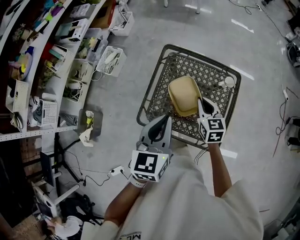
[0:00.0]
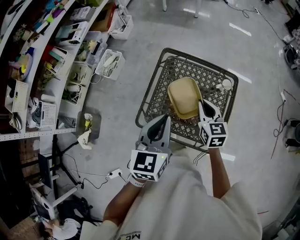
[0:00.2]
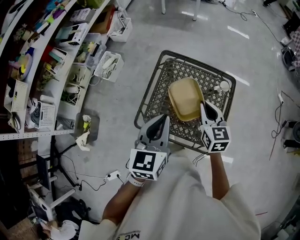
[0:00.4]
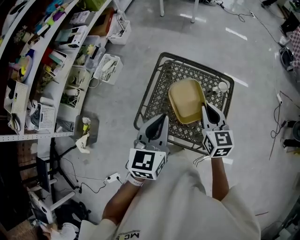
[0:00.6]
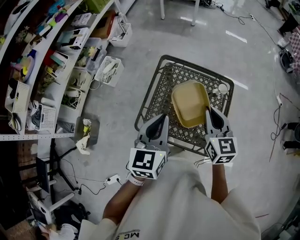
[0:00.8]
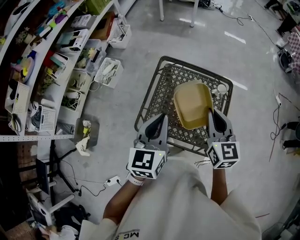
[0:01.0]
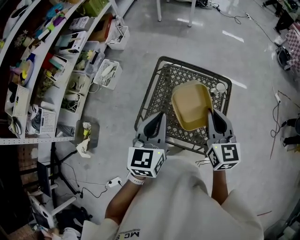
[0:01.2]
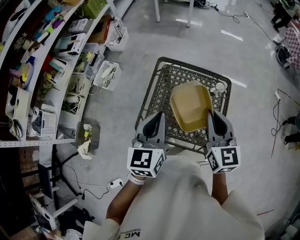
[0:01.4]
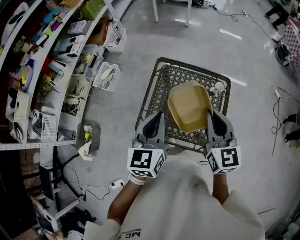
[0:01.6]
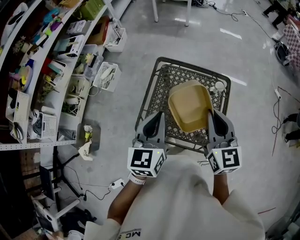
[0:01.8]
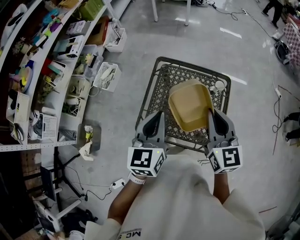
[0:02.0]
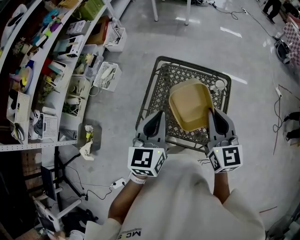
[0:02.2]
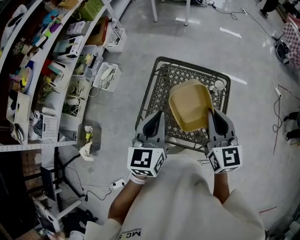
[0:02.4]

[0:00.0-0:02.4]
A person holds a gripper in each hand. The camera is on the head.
0:00.0 to 0:01.2: The right gripper heads upward, covering some 20 cm.
0:01.2 to 0:02.4: The grippers make only small movements.

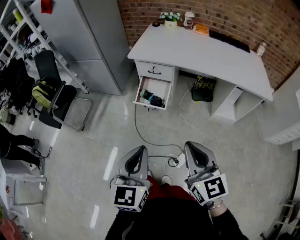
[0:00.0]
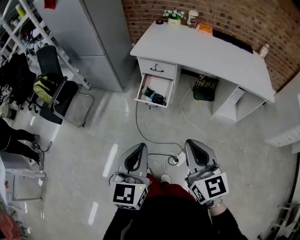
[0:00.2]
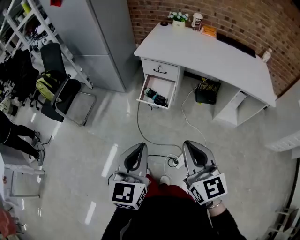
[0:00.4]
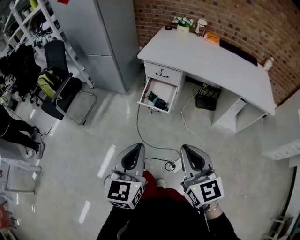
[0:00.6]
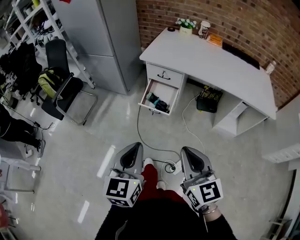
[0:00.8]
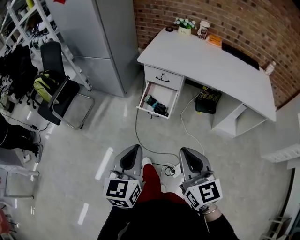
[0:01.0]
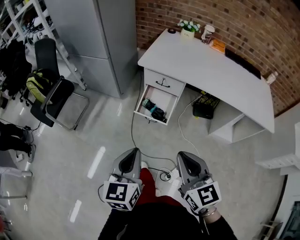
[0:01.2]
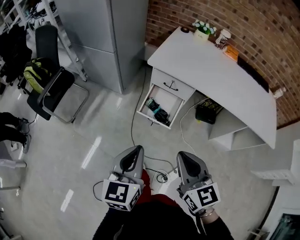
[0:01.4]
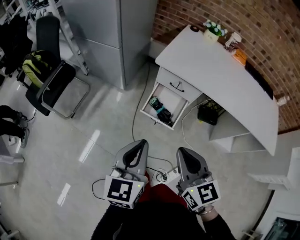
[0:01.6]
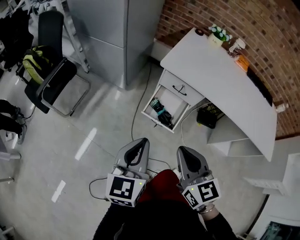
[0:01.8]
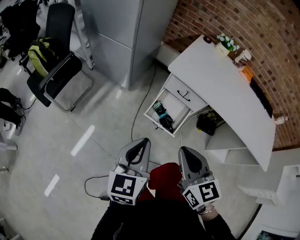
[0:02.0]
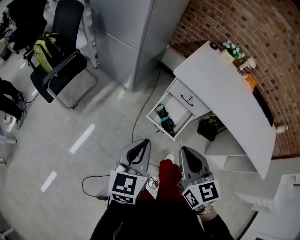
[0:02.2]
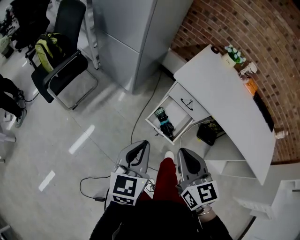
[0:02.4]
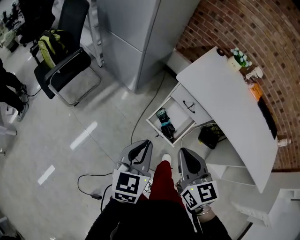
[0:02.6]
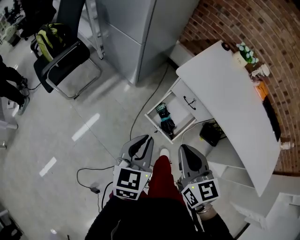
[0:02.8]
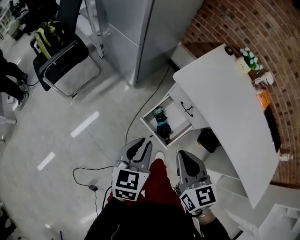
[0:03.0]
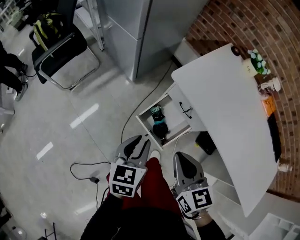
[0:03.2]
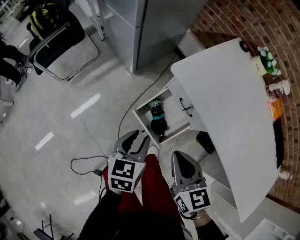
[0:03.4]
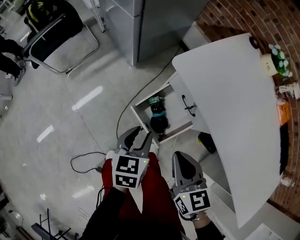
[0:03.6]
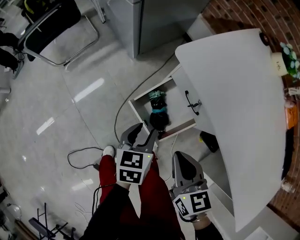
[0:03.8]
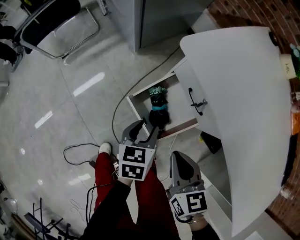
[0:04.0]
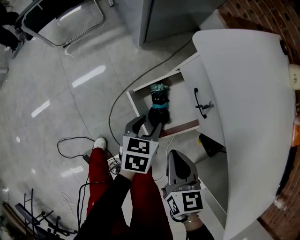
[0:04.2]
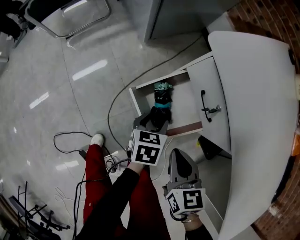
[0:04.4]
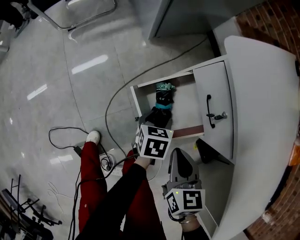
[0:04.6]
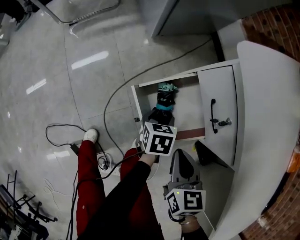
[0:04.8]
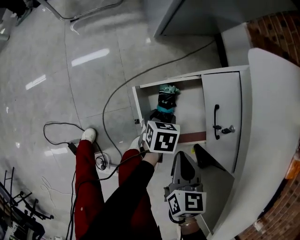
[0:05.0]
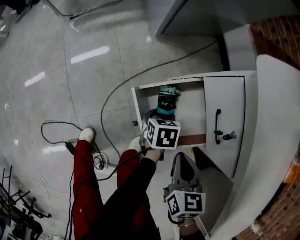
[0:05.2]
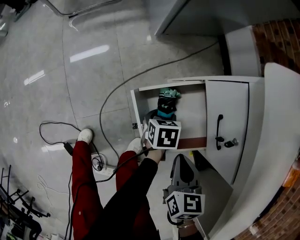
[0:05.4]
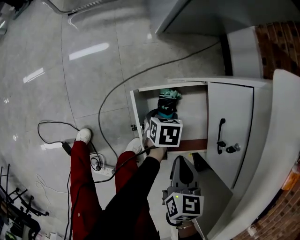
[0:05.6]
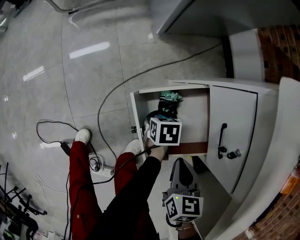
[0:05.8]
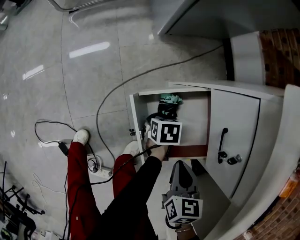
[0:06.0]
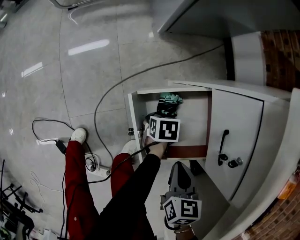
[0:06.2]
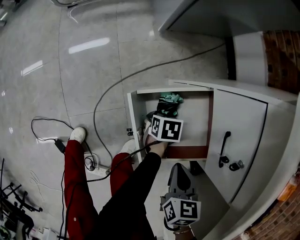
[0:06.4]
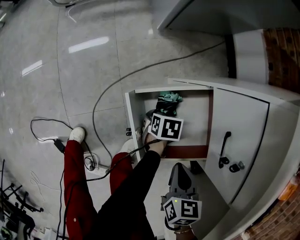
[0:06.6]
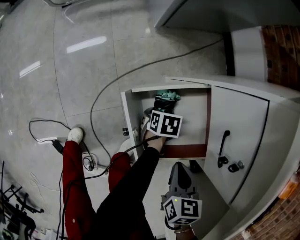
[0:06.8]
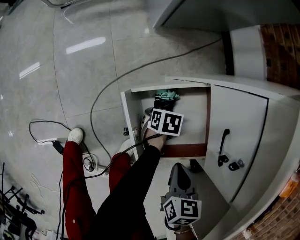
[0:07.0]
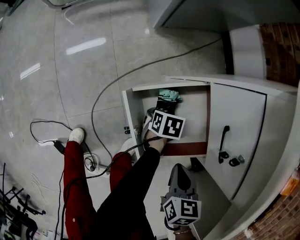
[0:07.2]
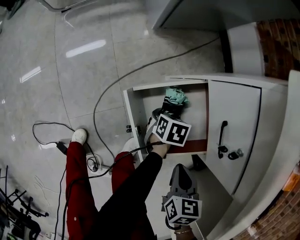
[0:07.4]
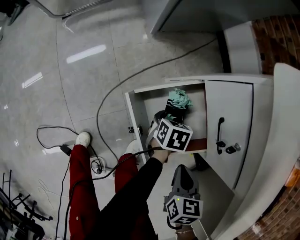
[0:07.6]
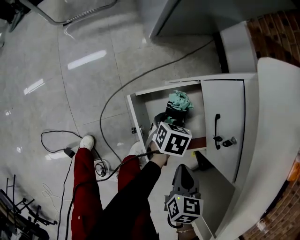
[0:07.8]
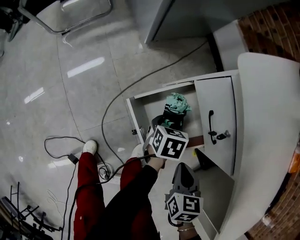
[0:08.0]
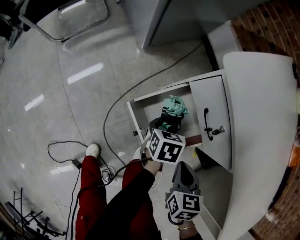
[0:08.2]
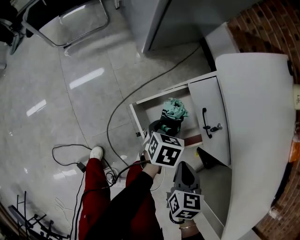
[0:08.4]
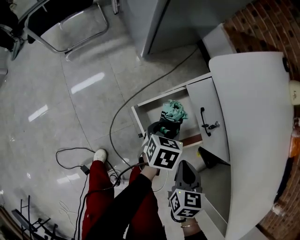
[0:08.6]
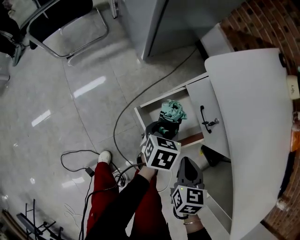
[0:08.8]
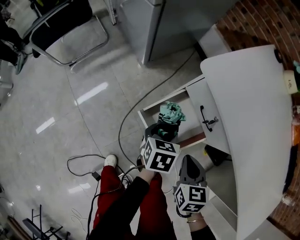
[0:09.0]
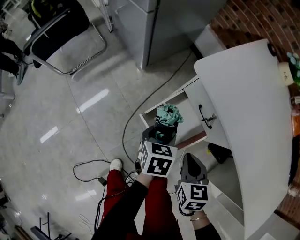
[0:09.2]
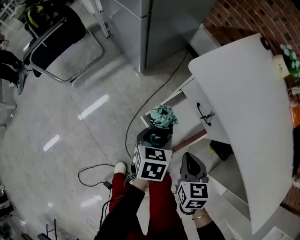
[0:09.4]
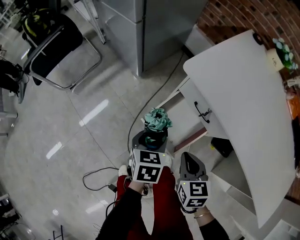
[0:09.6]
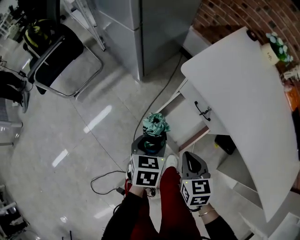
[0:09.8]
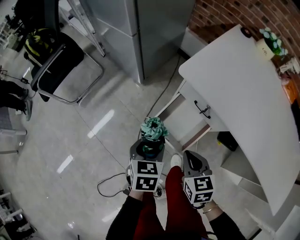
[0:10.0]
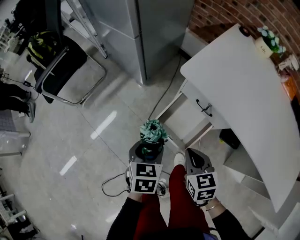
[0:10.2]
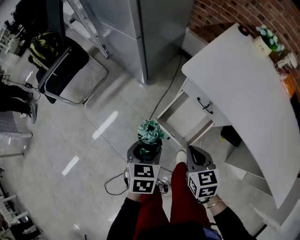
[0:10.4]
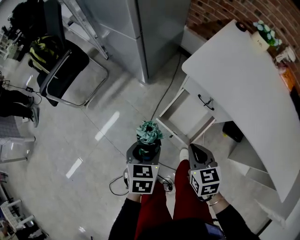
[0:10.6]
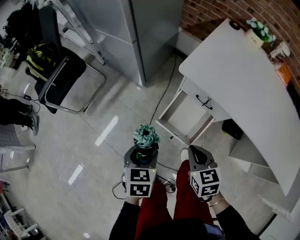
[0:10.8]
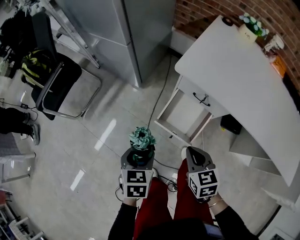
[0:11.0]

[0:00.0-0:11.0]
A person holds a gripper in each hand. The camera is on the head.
0:00.0 to 0:01.6: The two grippers go approximately 25 cm forward and to the left.
0:01.6 to 0:03.2: The two grippers go some 20 cm forward, downward and to the right. The left gripper changes its angle by some 20 degrees. The right gripper turns by about 20 degrees.
0:03.2 to 0:04.8: The two grippers go approximately 30 cm downward. The right gripper swivels approximately 20 degrees. Meanwhile the left gripper swivels about 40 degrees, and opens.
0:04.8 to 0:06.2: The left gripper travels downward by approximately 15 cm, and swivels approximately 20 degrees, while the right gripper goes roughly 10 cm downward.
0:06.2 to 0:07.8: The left gripper moves upward, roughly 10 cm, and rotates some 20 degrees.
0:07.8 to 0:09.4: The right gripper heads upward and to the left, covering approximately 15 cm, while the left gripper travels upward and to the left by some 25 cm, and rotates approximately 20 degrees.
0:09.4 to 0:11.0: The right gripper travels to the left and upward by some 10 cm, while the left gripper moves to the left, upward and backward, about 20 cm.

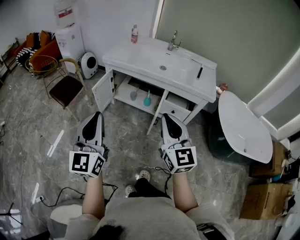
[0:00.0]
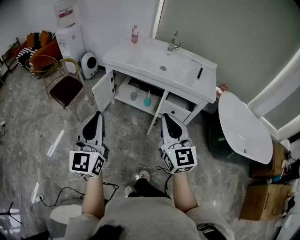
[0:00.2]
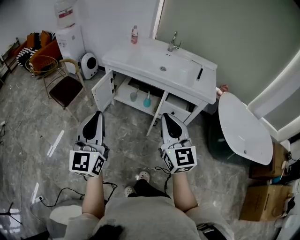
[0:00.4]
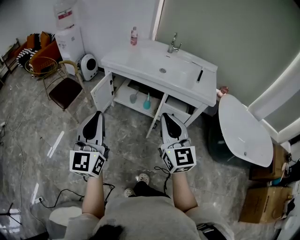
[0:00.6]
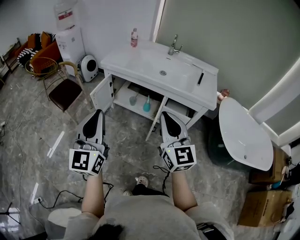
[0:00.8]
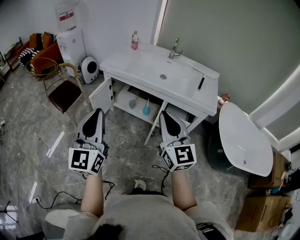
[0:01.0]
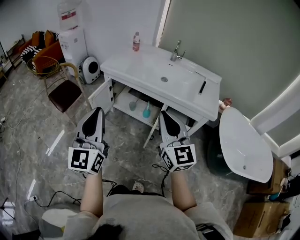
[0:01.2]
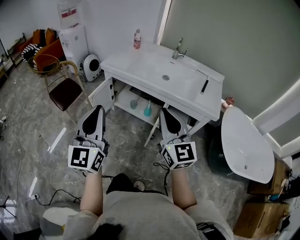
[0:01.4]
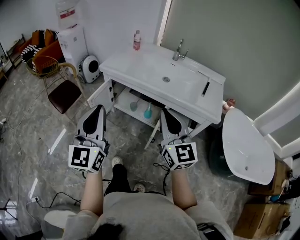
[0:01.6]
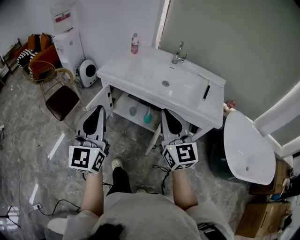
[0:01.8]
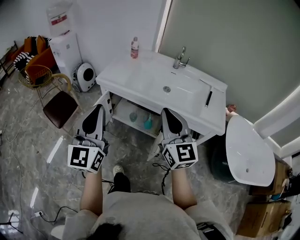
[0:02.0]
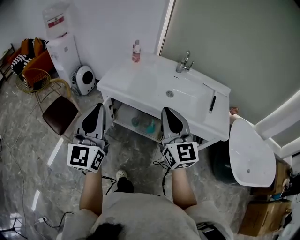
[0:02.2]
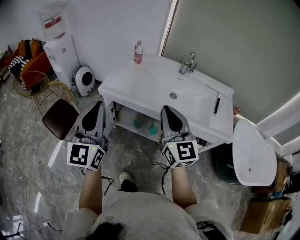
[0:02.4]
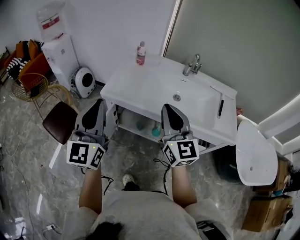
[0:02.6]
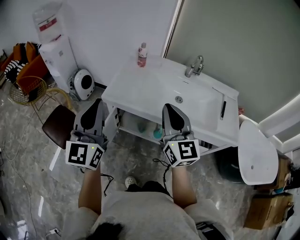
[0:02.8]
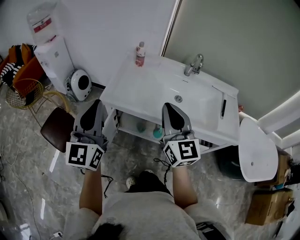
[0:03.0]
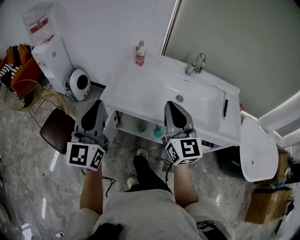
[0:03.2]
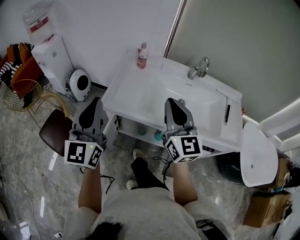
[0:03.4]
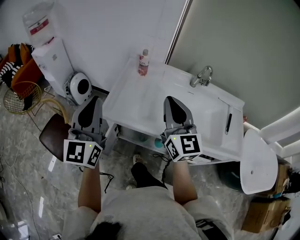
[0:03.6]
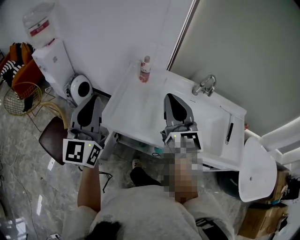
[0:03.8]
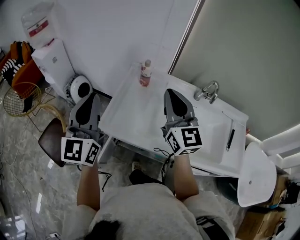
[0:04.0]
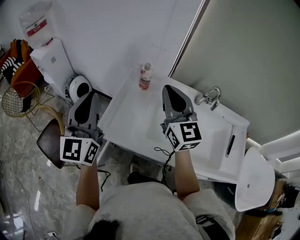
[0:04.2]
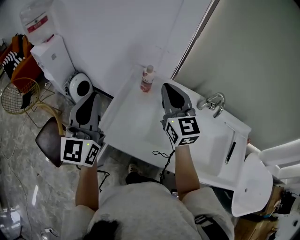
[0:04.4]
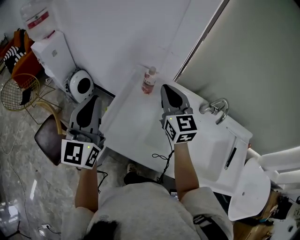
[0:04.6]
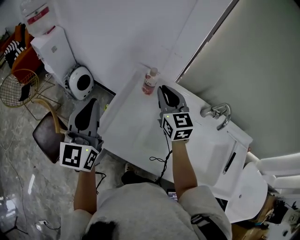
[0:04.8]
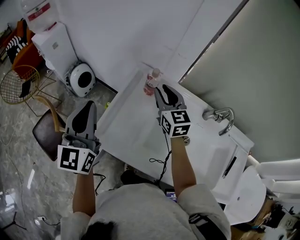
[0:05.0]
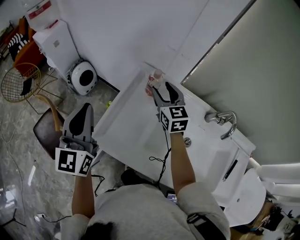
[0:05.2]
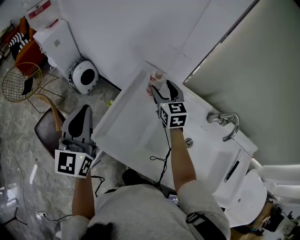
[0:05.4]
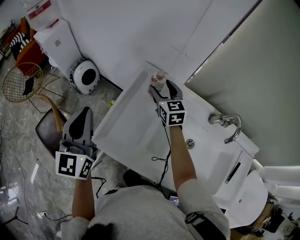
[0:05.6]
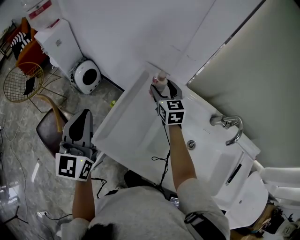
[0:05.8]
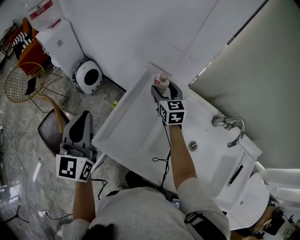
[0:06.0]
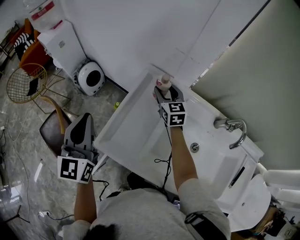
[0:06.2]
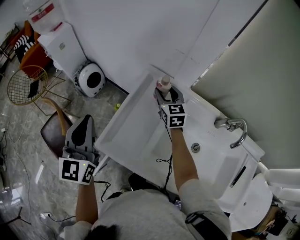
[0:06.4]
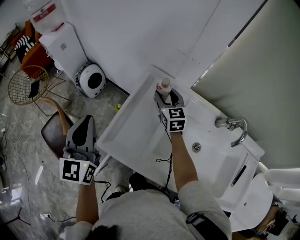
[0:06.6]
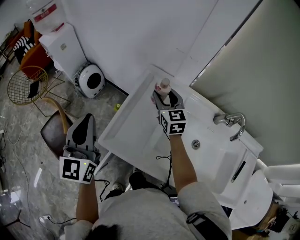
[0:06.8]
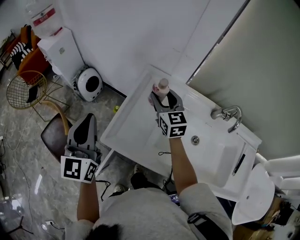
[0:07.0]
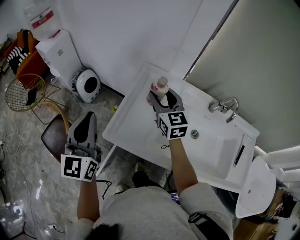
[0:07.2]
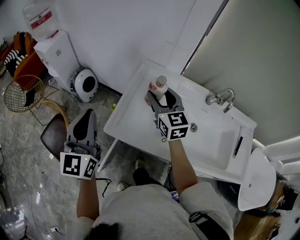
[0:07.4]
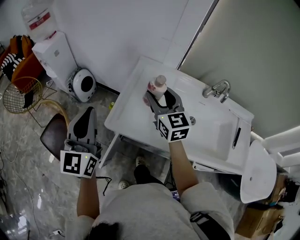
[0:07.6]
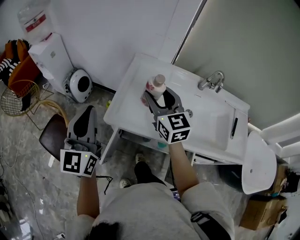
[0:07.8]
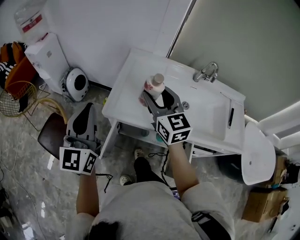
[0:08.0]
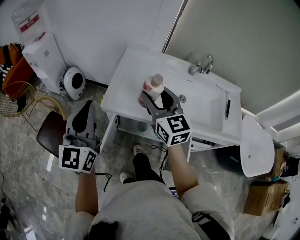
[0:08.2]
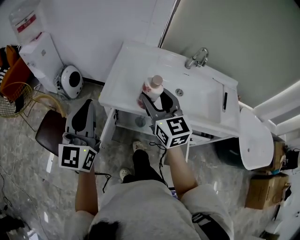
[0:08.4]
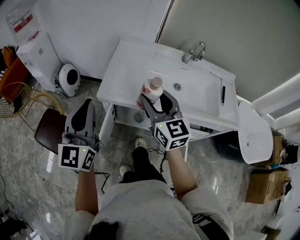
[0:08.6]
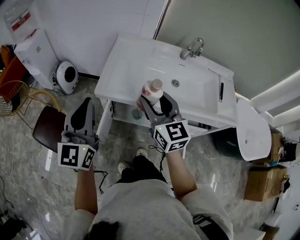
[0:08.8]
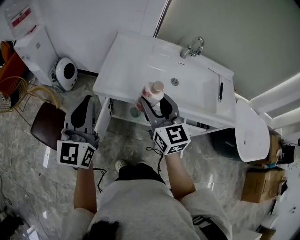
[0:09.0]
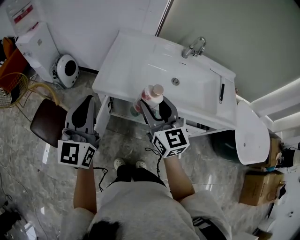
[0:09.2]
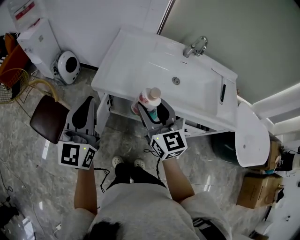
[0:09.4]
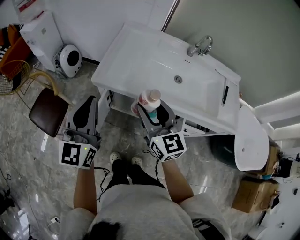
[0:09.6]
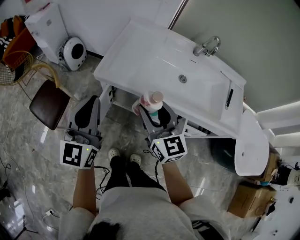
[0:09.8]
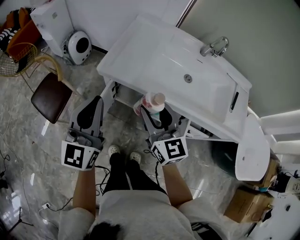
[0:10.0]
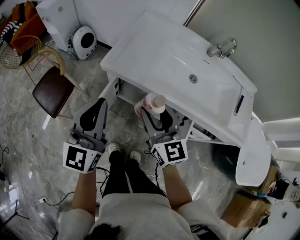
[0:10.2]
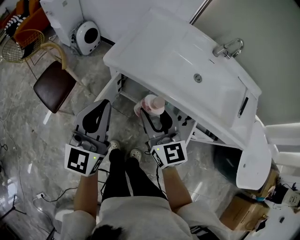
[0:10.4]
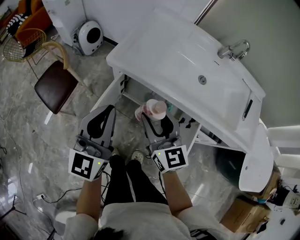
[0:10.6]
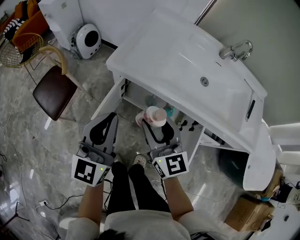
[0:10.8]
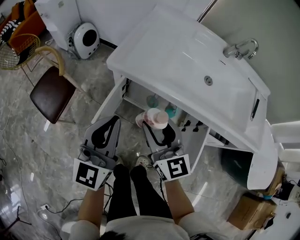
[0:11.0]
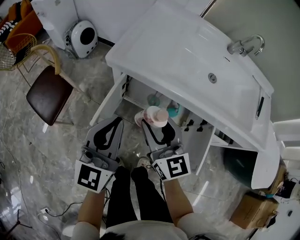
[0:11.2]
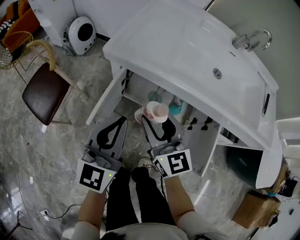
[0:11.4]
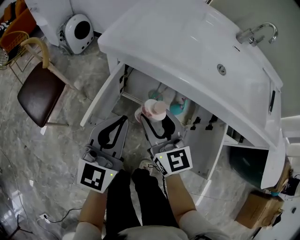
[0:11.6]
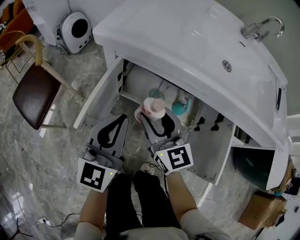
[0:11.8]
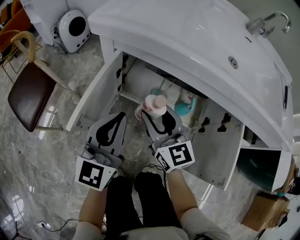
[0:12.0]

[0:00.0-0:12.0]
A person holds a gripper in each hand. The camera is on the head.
0:00.0 to 0:01.6: The left gripper travels forward and to the right by about 15 cm. Meanwhile the right gripper moves forward, approximately 15 cm.
0:01.6 to 0:03.0: Both grippers travel together forward and to the left, about 35 cm.
0:03.0 to 0:04.4: The grippers both shift forward by roughly 30 cm.
0:04.4 to 0:06.0: The right gripper is displaced downward and forward by roughly 30 cm, changes its angle by about 20 degrees, and opens up, while the left gripper moves downward and forward, approximately 10 cm.
0:06.0 to 0:07.6: The right gripper moves backward and upward, roughly 30 cm. The left gripper travels backward and to the left by some 15 cm.
0:07.6 to 0:09.0: The left gripper is displaced backward by roughly 15 cm, while the right gripper shifts roughly 25 cm backward.
0:09.0 to 0:10.4: The left gripper travels downward, to the right and backward by approximately 10 cm. The right gripper travels downward by about 10 cm.
0:10.4 to 0:12.0: The two grippers go approximately 35 cm downward.
